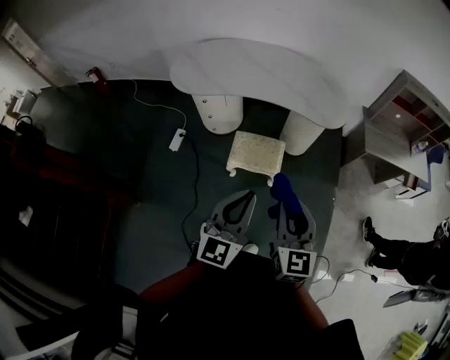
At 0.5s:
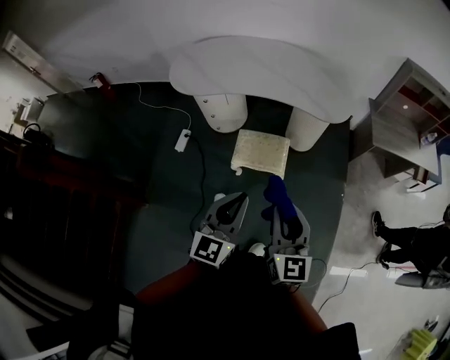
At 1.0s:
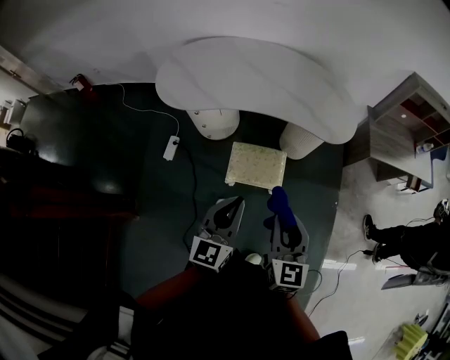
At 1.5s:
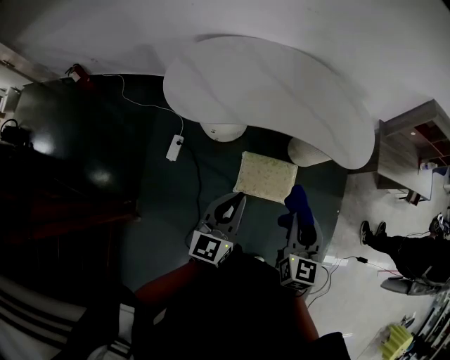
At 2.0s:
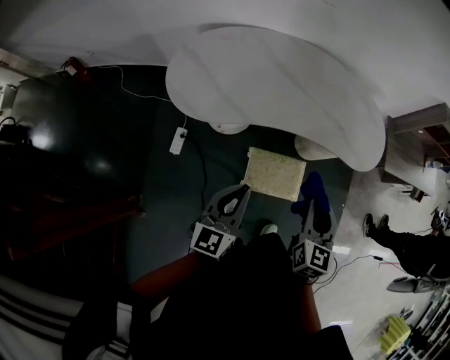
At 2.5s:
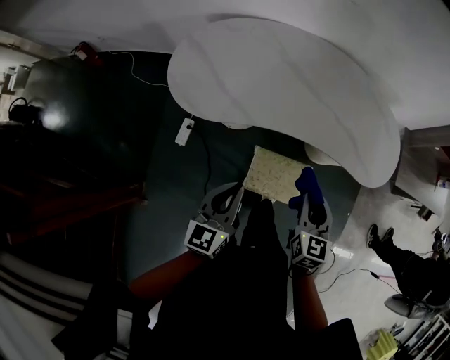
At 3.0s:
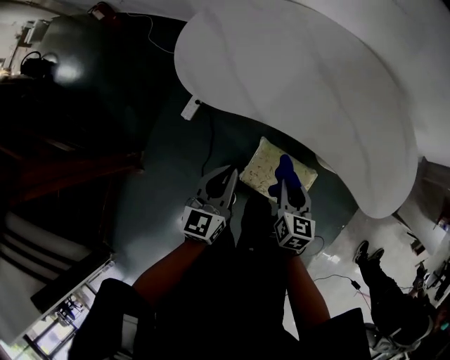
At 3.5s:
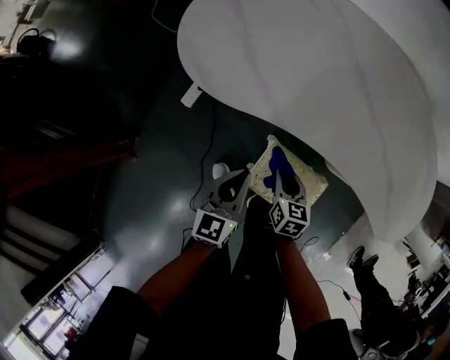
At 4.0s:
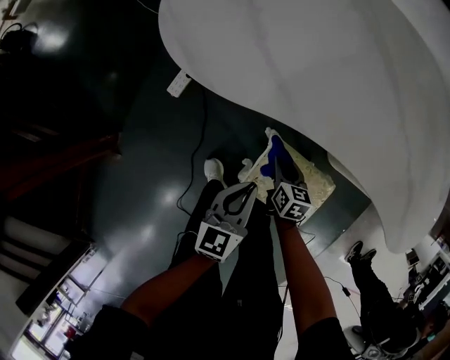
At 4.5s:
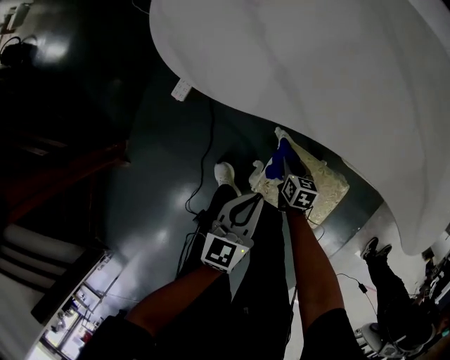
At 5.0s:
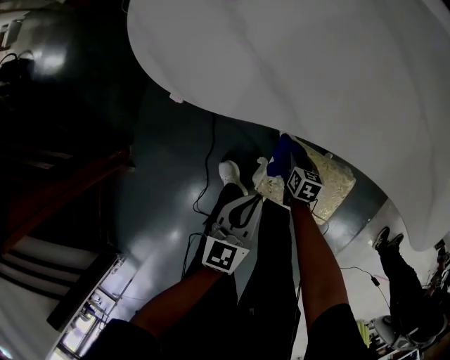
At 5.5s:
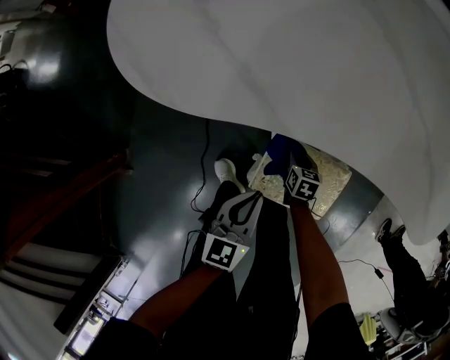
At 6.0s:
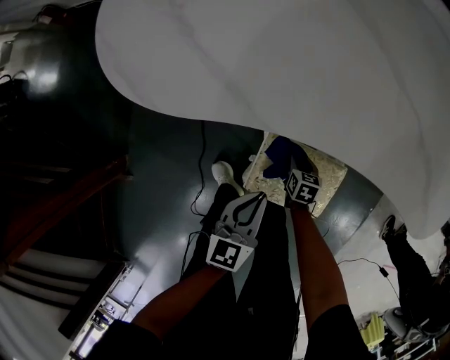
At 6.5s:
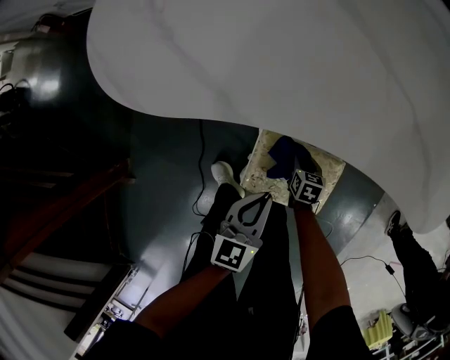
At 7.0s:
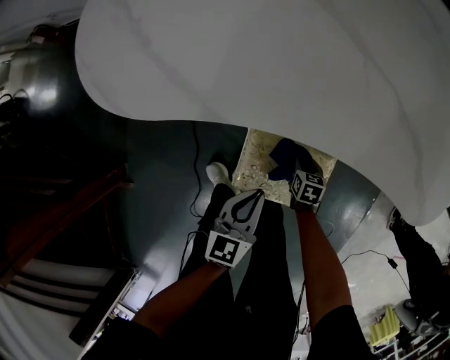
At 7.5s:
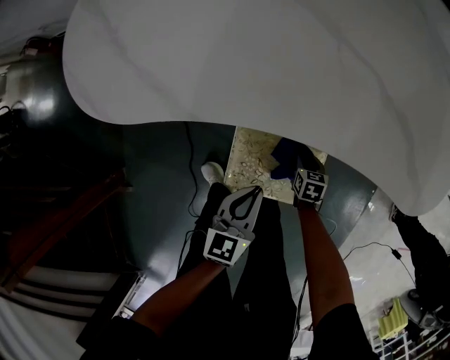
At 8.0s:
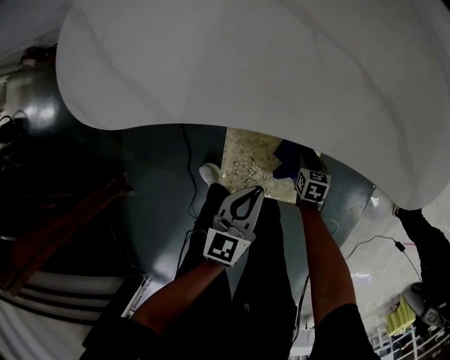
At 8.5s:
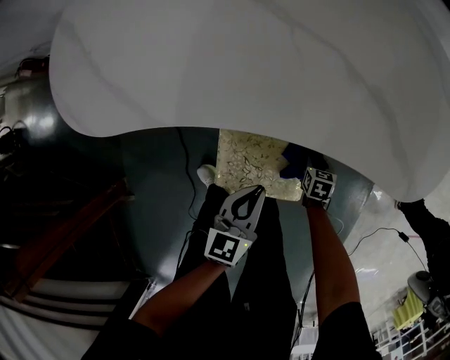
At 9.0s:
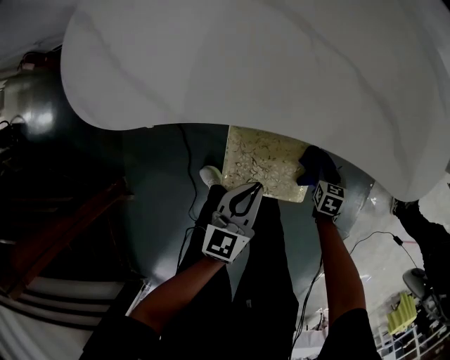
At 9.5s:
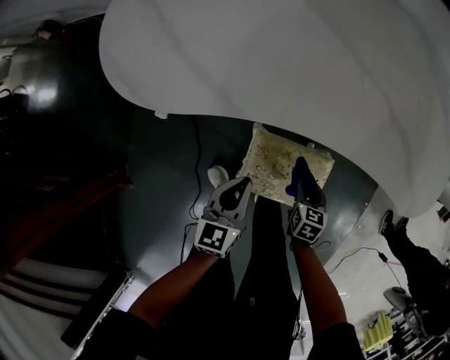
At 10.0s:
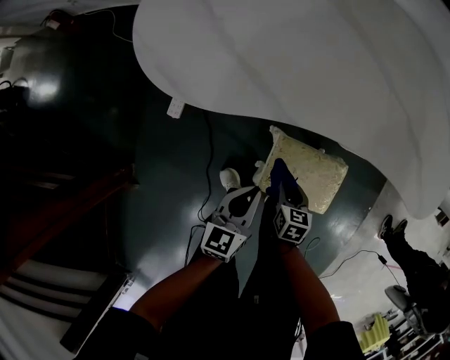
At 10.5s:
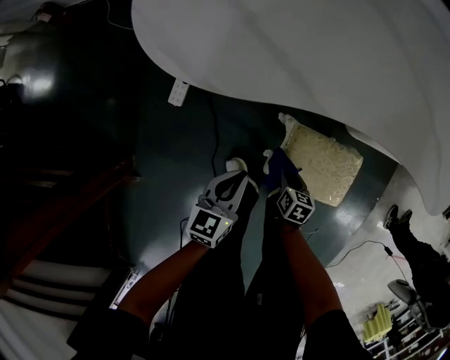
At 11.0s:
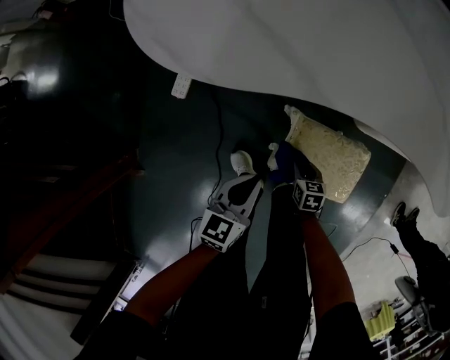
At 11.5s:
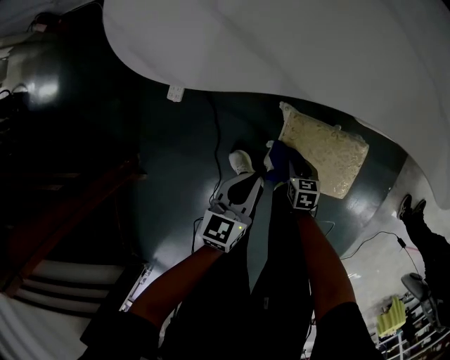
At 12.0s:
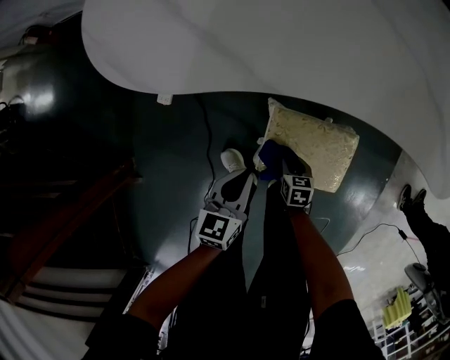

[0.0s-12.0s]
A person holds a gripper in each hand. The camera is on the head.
0.0s to 2.0s: The right gripper heads forward, covering roughly 30 cm, and rotates approximately 20 degrees; the left gripper heads forward and to the left, covering some 40 cm.
2.0s to 4.0s: The grippers both shift downward by approximately 40 cm. The left gripper rotates approximately 30 degrees, while the right gripper changes its angle by some 40 degrees.
4.0s to 6.0s: The right gripper travels downward and to the right by some 15 cm. The left gripper travels to the right by approximately 5 cm.
6.0s to 8.0s: The two grippers go approximately 15 cm to the right.
8.0s to 10.0s: The left gripper travels to the left by some 20 cm. Meanwhile the right gripper shifts approximately 30 cm to the left and upward.
10.0s to 12.0s: The right gripper shifts some 15 cm downward. The left gripper moves downward, approximately 10 cm, and reaches some 10 cm to the left, then returns.

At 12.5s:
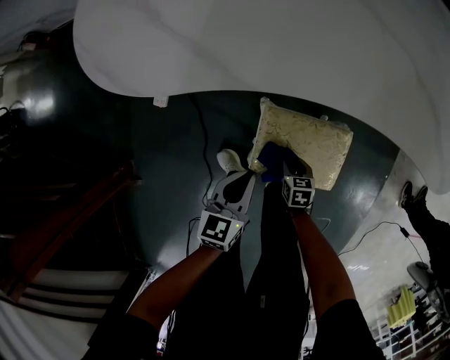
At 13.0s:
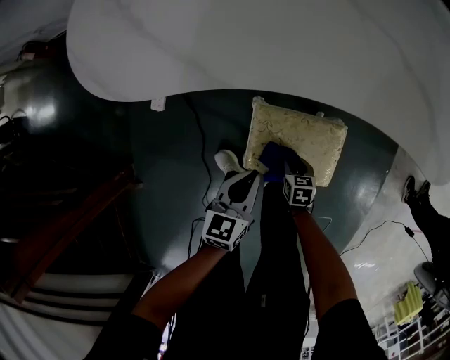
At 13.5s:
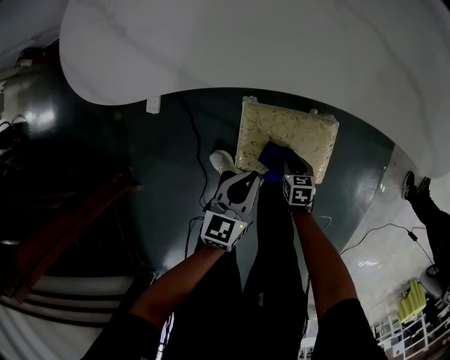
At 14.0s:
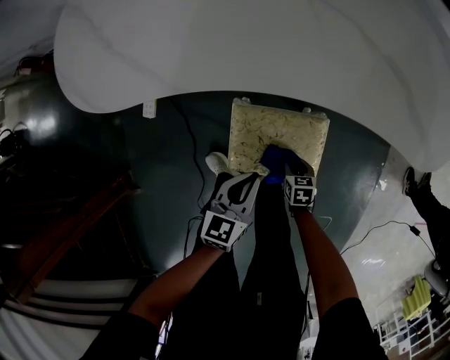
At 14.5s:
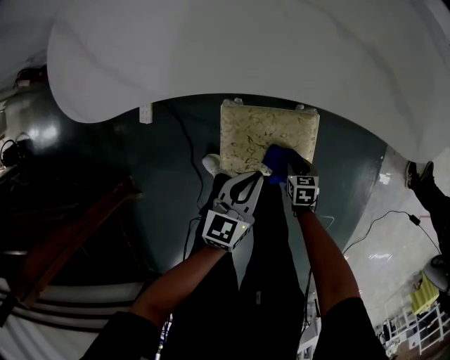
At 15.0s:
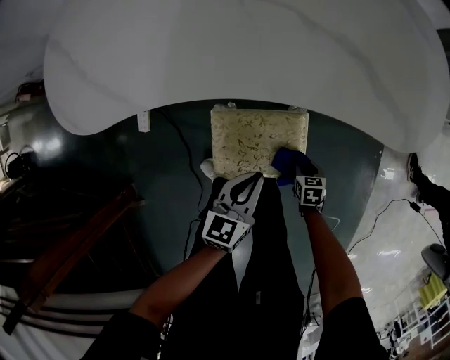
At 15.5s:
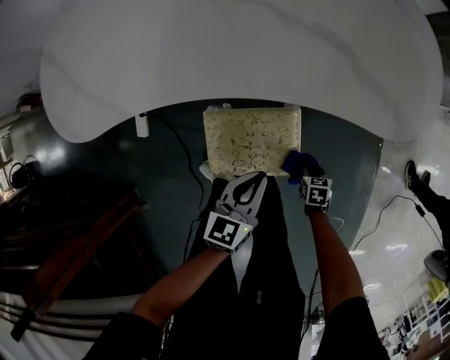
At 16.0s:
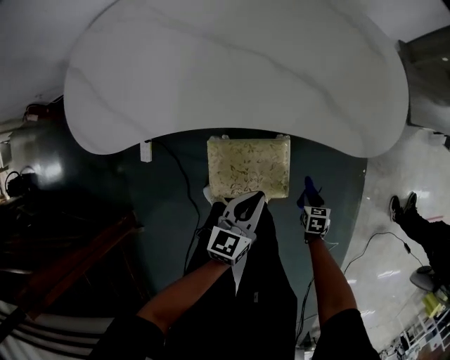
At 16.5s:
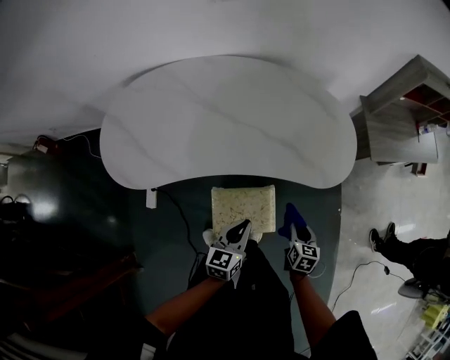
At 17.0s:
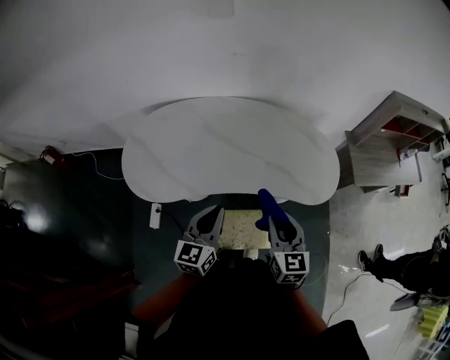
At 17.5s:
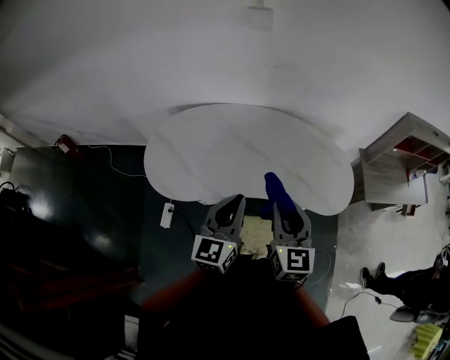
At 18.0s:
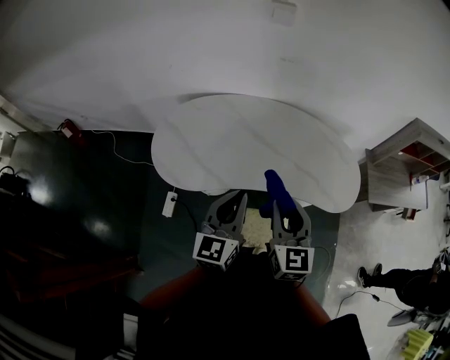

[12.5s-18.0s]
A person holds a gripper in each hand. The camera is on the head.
12.5s to 14.5s: The grippers both shift to the right by roughly 15 cm.
14.5s to 16.0s: The left gripper goes some 10 cm to the right and upward; the right gripper moves to the right, roughly 15 cm.
16.0s to 18.0s: The left gripper heads upward and to the left, covering about 50 cm, and turns by approximately 30 degrees. The right gripper travels upward and to the left by about 80 cm, and tilts its fingers about 60 degrees upward.

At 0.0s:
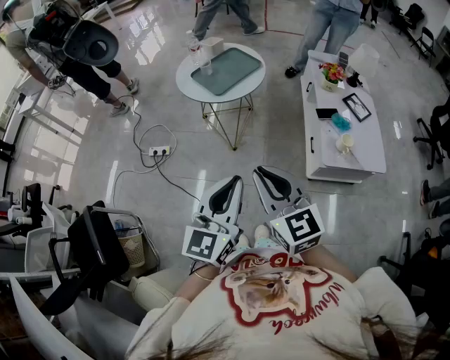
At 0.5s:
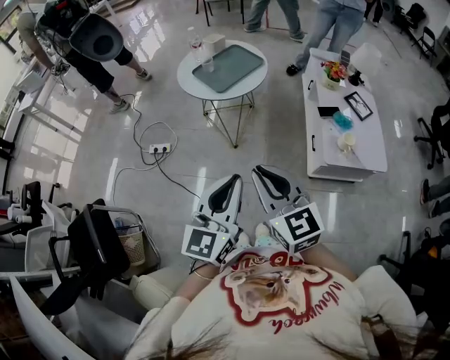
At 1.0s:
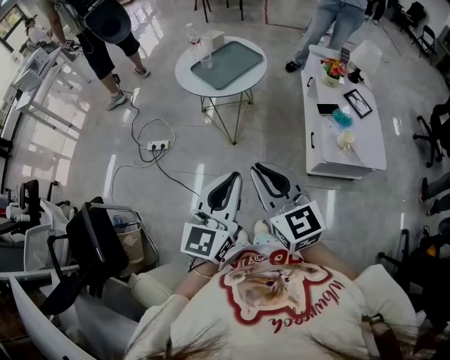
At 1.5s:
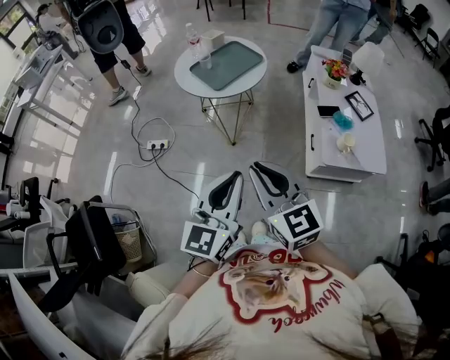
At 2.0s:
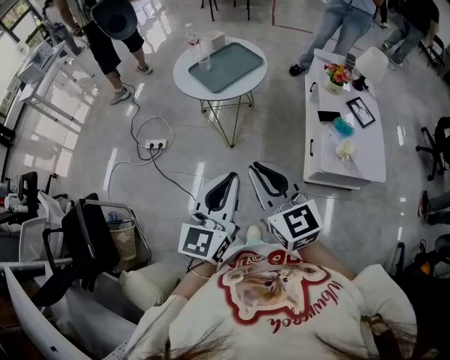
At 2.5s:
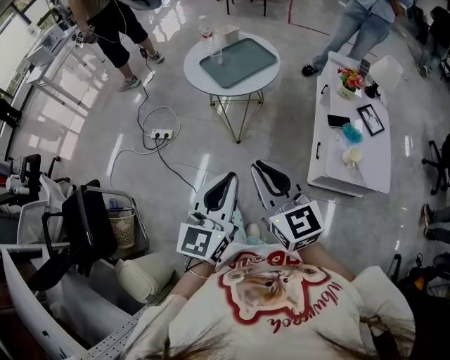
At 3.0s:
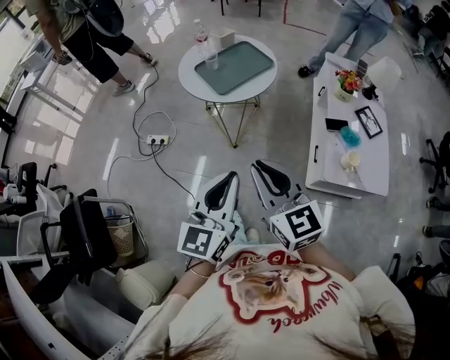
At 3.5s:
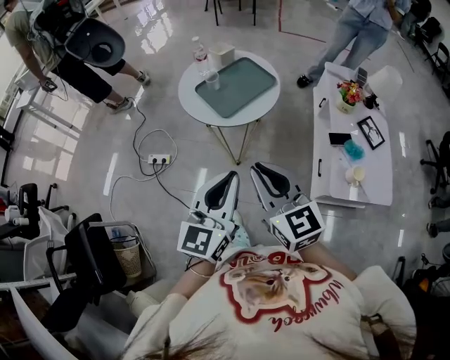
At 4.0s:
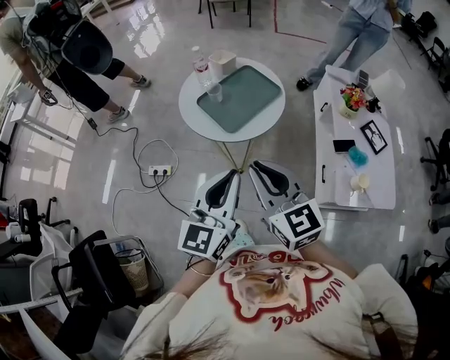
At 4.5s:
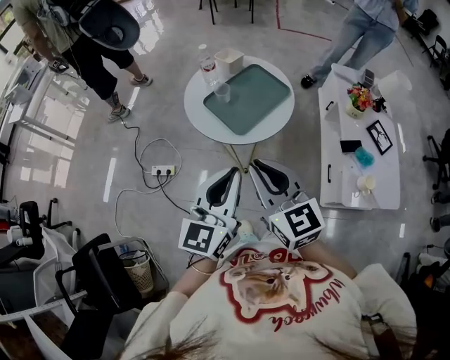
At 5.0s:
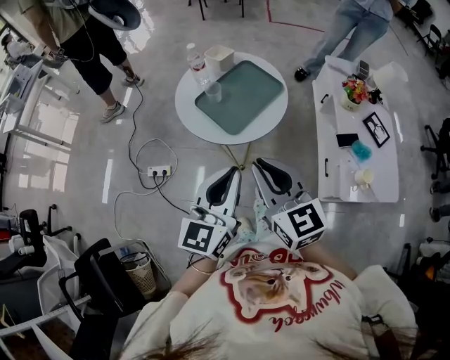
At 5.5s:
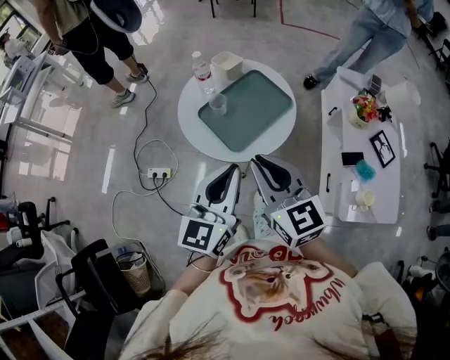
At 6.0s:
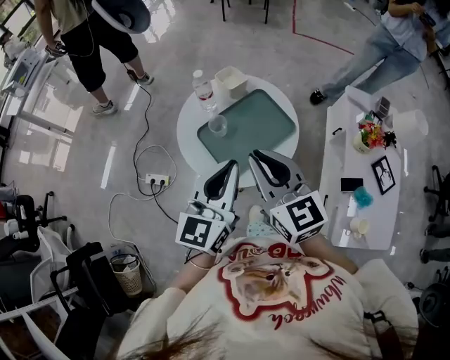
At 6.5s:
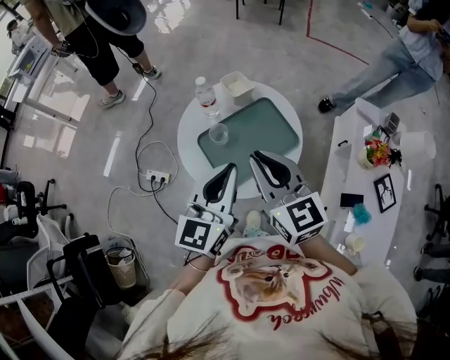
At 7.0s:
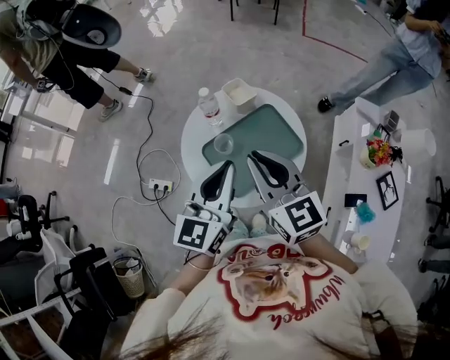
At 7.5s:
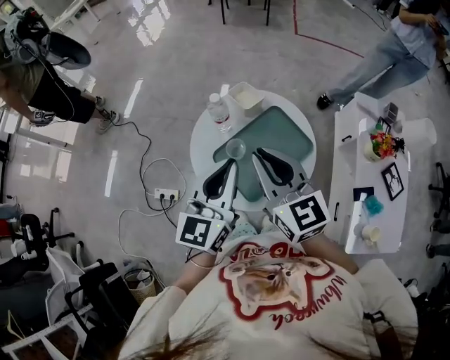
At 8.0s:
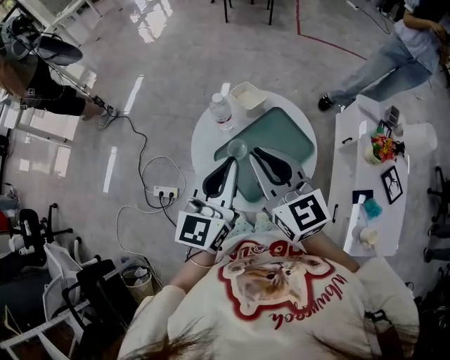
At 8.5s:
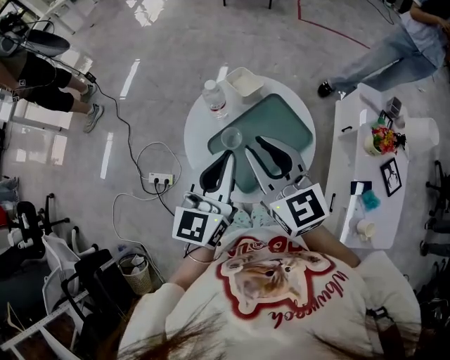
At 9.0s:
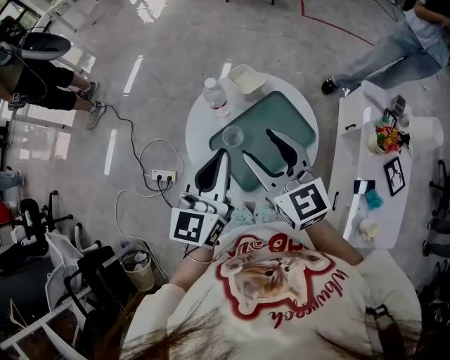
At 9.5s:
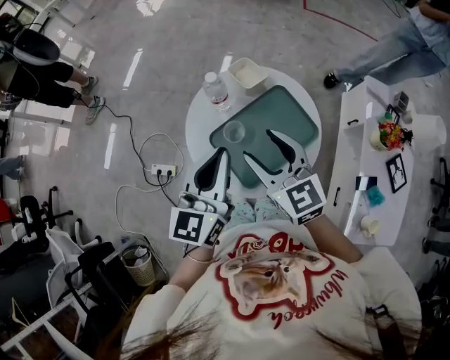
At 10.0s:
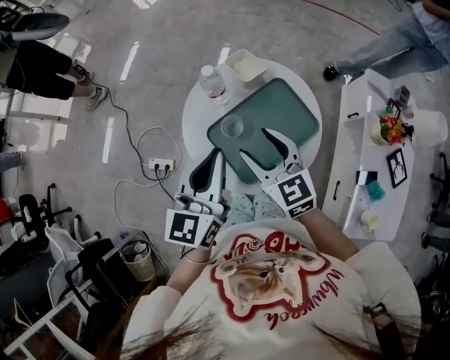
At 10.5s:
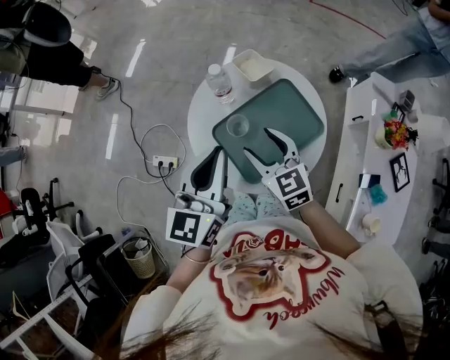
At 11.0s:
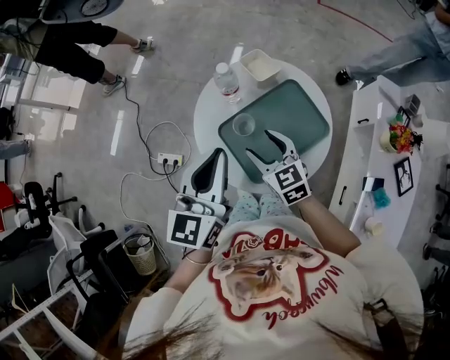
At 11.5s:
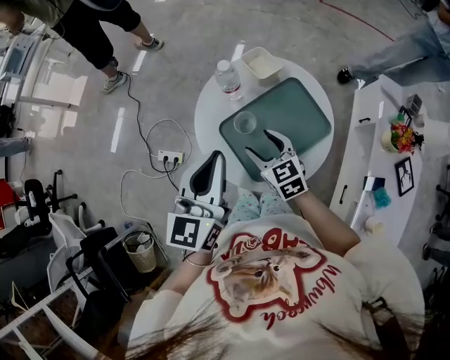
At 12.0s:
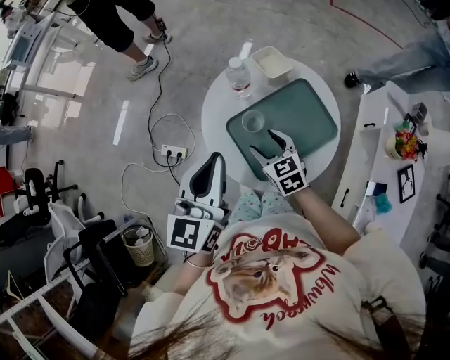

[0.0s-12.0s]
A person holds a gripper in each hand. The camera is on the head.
0.0s to 2.0s: The left gripper moves about 5 cm. The right gripper moves approximately 5 cm.
2.0s to 4.0s: Both grippers move forward, about 20 cm.
4.0s to 6.0s: Both grippers travel together forward, approximately 25 cm.
6.0s to 8.0s: Both grippers move forward and to the left, some 10 cm.
8.0s to 10.0s: The right gripper moves downward, approximately 10 cm, and opens up.
10.0s to 12.0s: The right gripper travels downward by some 15 cm, while the left gripper changes place by some 5 cm.
